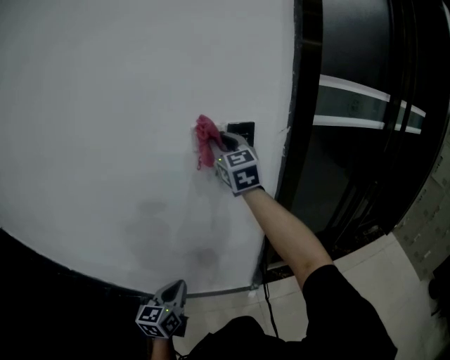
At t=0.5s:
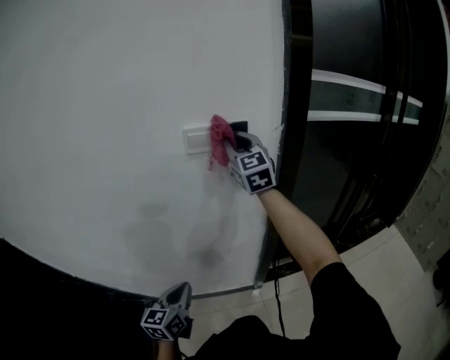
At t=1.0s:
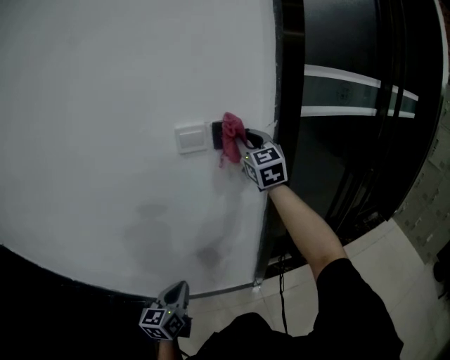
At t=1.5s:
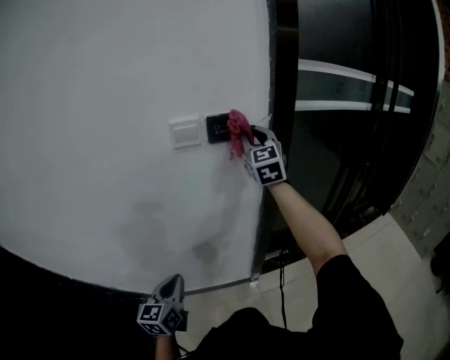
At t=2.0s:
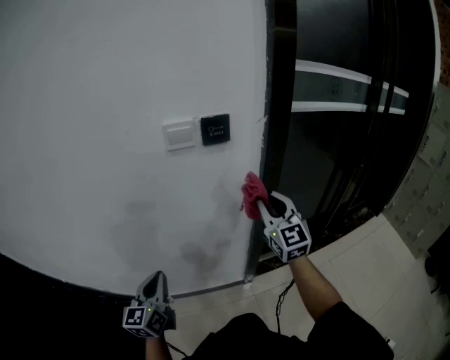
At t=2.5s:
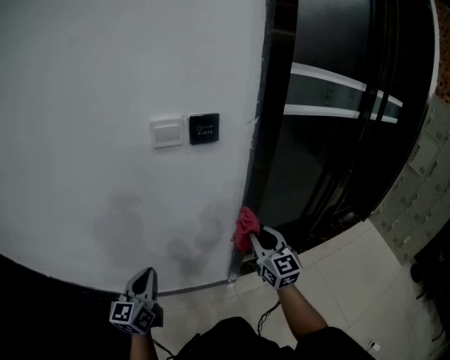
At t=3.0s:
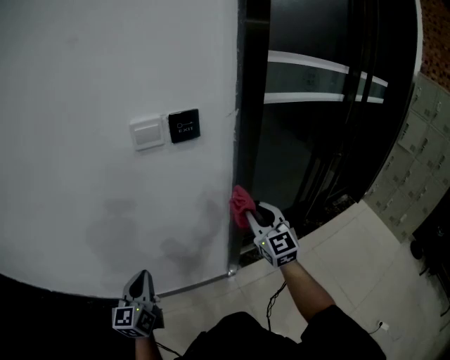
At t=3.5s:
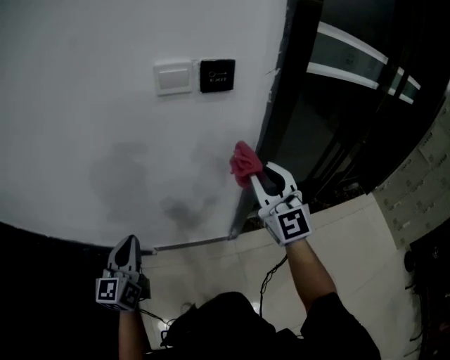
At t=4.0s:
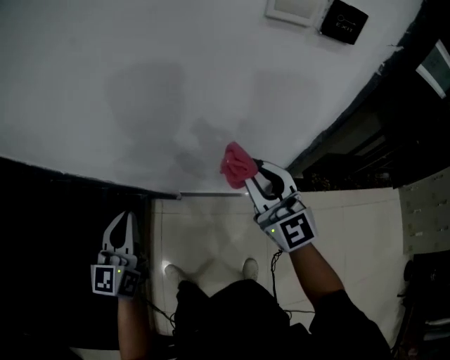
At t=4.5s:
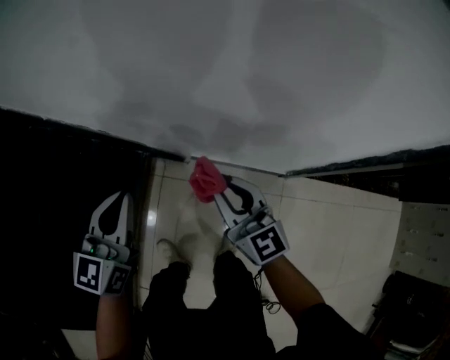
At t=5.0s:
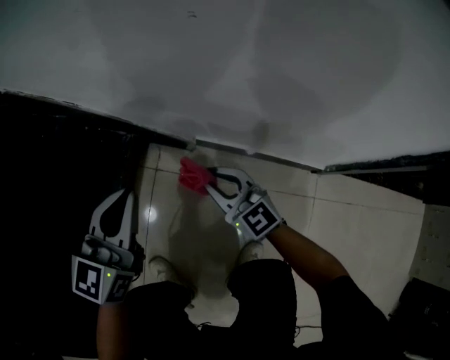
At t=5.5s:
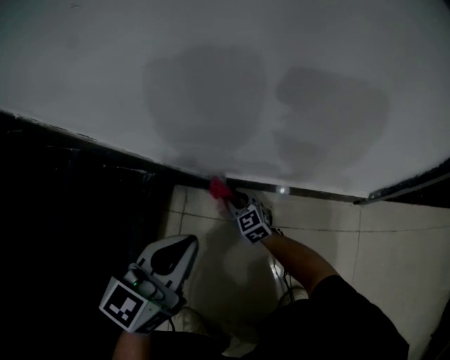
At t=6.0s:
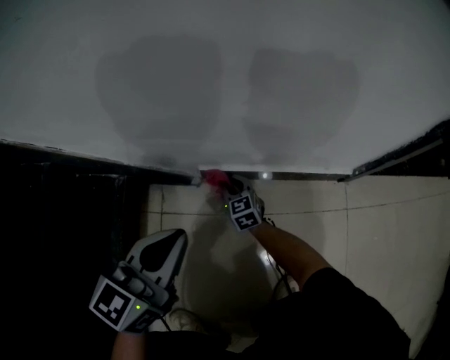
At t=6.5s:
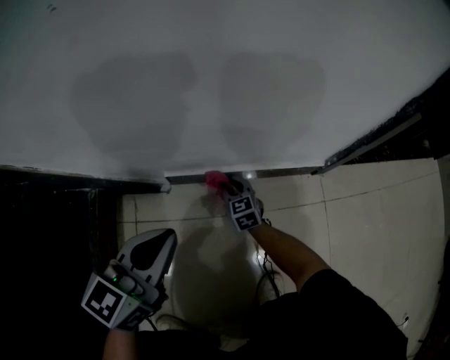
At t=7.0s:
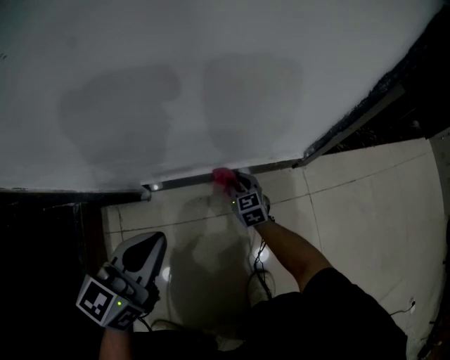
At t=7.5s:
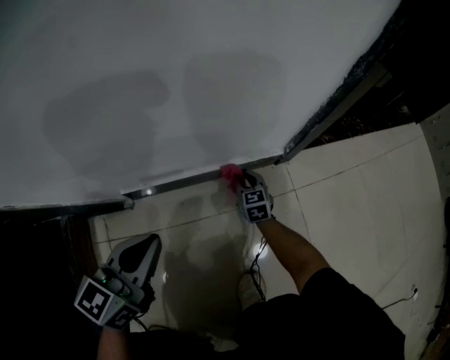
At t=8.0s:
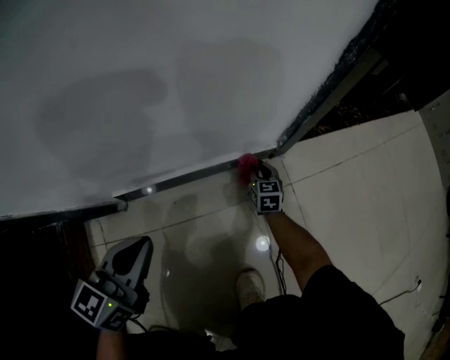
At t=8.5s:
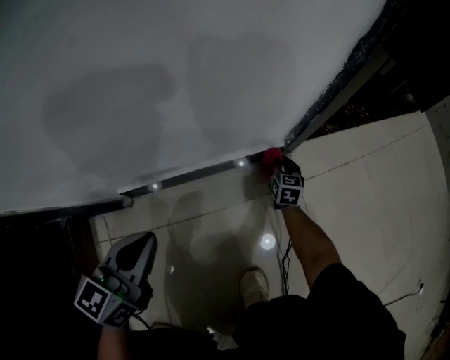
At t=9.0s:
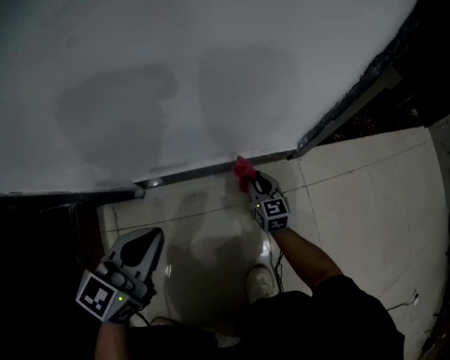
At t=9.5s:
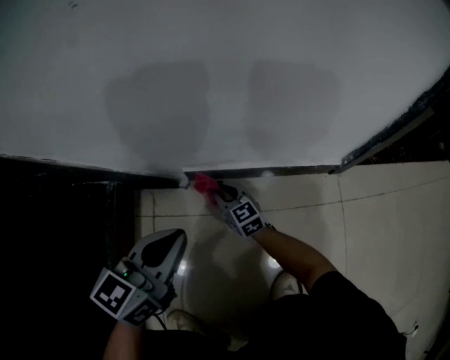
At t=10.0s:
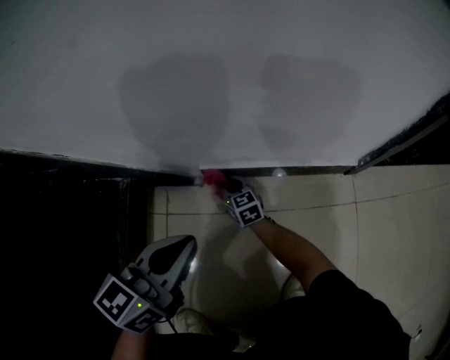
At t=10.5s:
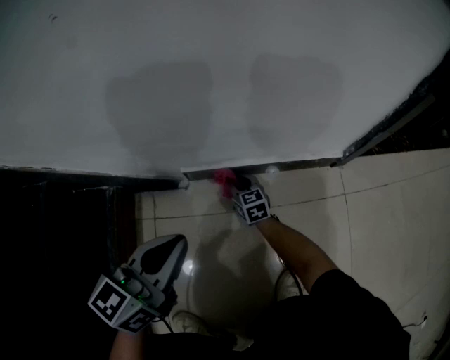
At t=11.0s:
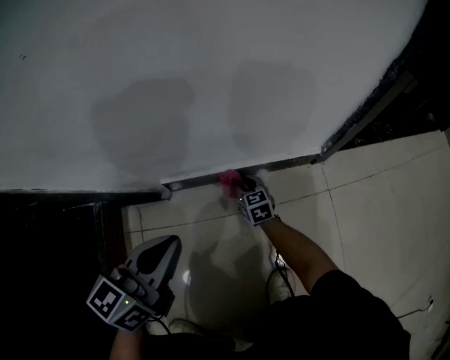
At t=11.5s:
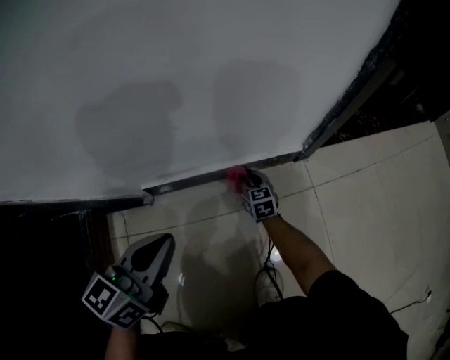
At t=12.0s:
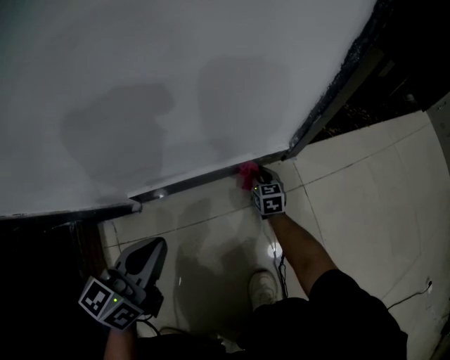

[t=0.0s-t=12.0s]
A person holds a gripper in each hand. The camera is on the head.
t=0.0s to t=2.0s: The right gripper heads to the right, downward and backward, covering approximately 25 cm. Meanwhile the left gripper moves approximately 5 cm.
t=2.0s to t=4.0s: The left gripper shifts approximately 15 cm to the left. The right gripper heads to the left and downward, covering roughly 25 cm, and rotates some 30 degrees.
t=4.0s to t=6.0s: The right gripper is displaced downward by some 90 cm, and angles its fingers downward, by roughly 30 degrees. Meanwhile the left gripper is displaced downward by about 60 cm, and rotates about 30 degrees.
t=6.0s to t=8.0s: The right gripper changes place by about 40 cm, and turns by about 40 degrees. Meanwhile the left gripper shifts by about 15 cm.
t=8.0s to t=10.0s: The left gripper changes place by some 15 cm; the right gripper changes place by some 40 cm, and changes its angle by some 40 degrees.
t=10.0s to t=12.0s: The left gripper shifts by roughly 10 cm; the right gripper shifts by approximately 40 cm, and changes its angle by about 40 degrees.

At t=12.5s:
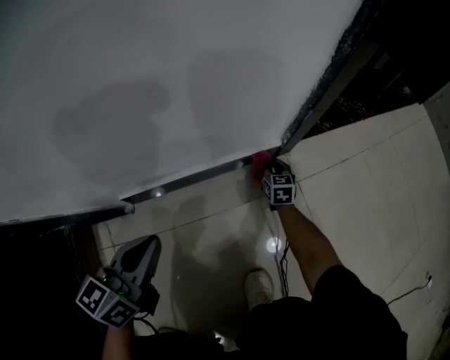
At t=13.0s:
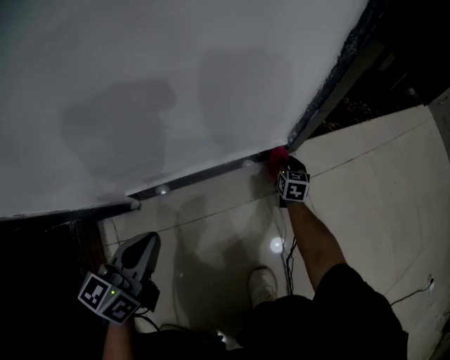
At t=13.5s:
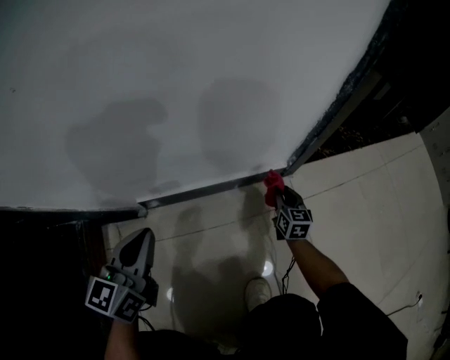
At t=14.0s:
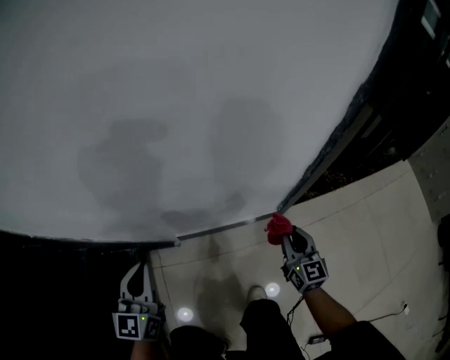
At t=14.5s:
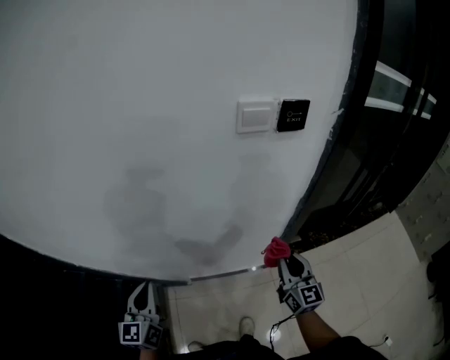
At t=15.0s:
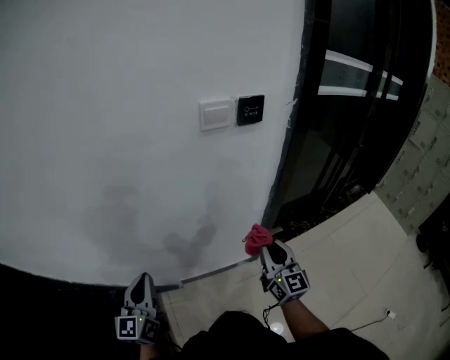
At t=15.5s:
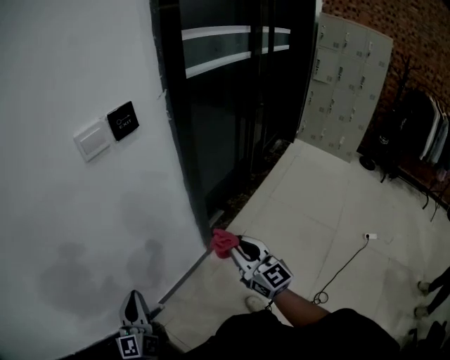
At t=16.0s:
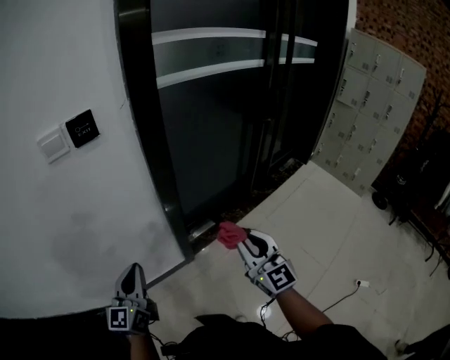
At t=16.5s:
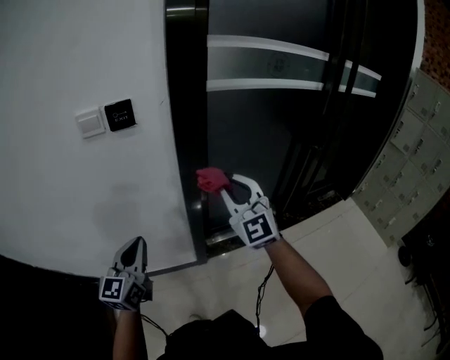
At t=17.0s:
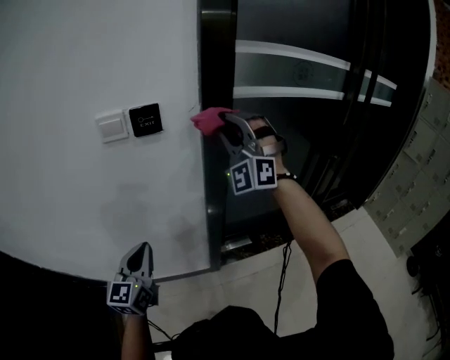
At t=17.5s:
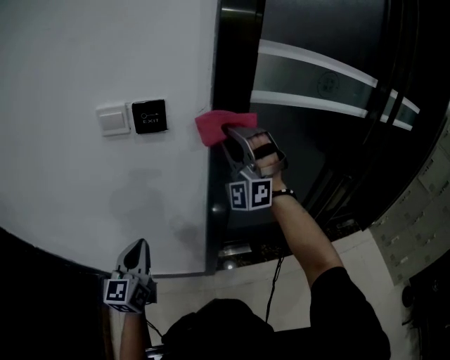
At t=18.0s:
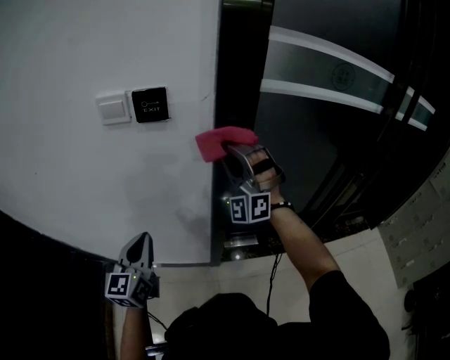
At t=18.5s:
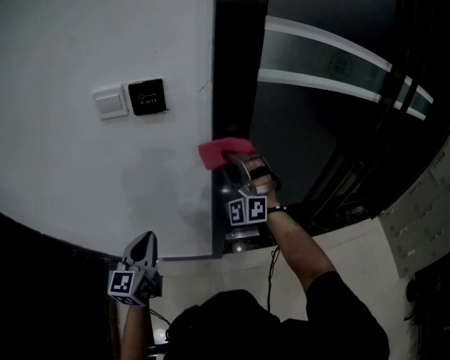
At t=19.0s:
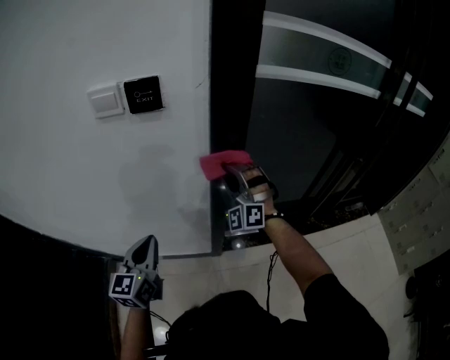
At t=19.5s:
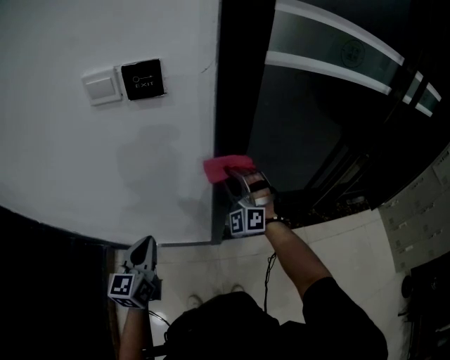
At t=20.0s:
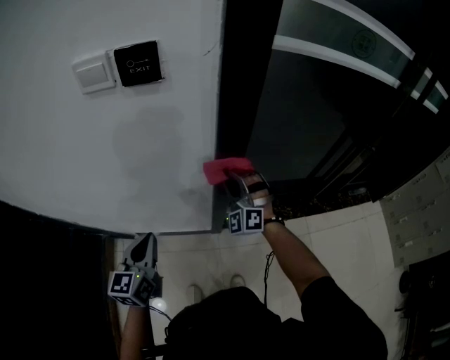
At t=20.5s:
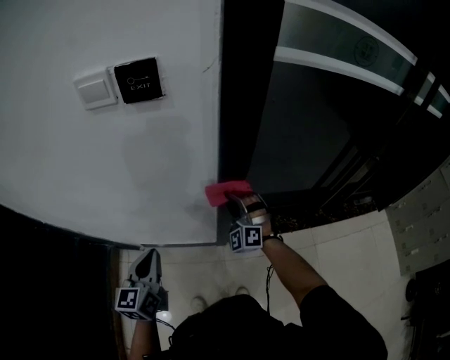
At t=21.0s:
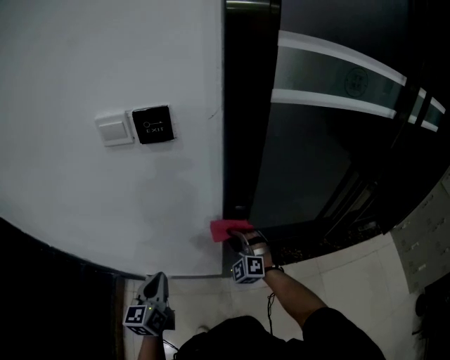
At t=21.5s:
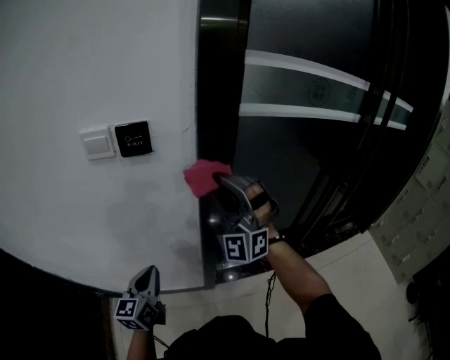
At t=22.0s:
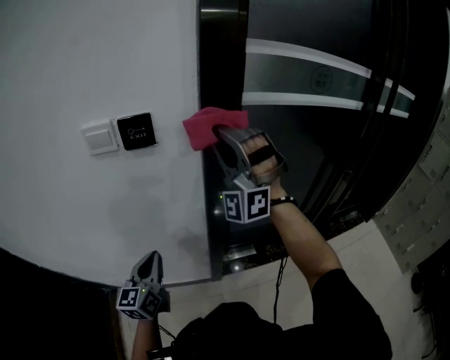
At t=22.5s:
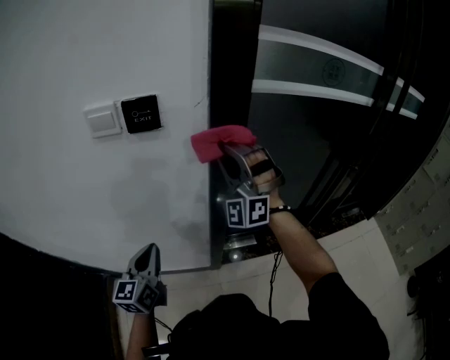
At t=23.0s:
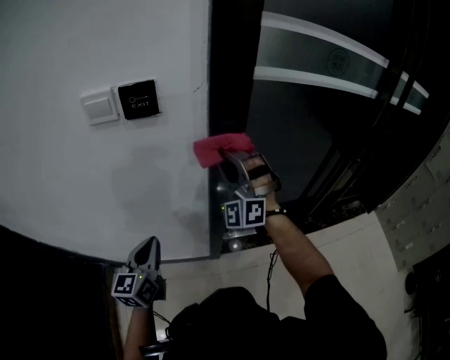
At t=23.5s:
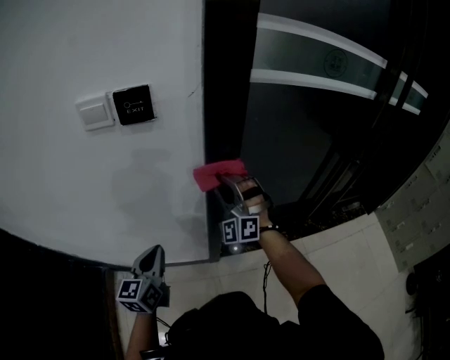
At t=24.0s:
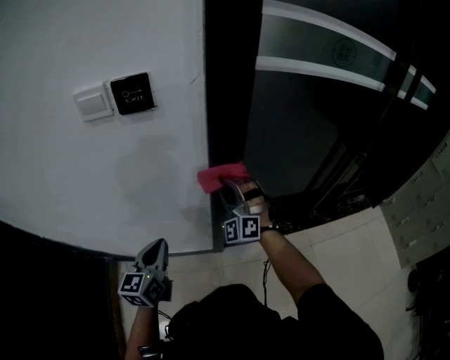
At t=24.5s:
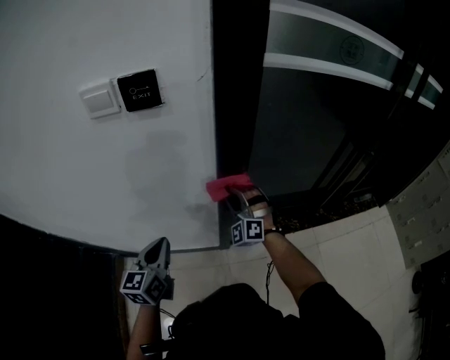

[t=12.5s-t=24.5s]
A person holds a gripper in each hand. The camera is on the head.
t=12.5s to t=14.5s: Both grippers travel together upward, roughly 80 cm. The left gripper changes its angle by approximately 40 degrees. The right gripper tips its fingers upward by roughly 40 degrees.
t=14.5s to t=16.5s: The left gripper is displaced to the right by about 40 cm. Meanwhile the right gripper moves to the right and upward, approximately 35 cm, and swivels some 40 degrees.
t=16.5s to t=18.5s: The right gripper moves forward, some 20 cm, goes upward and returns, roughly 15 cm each way, and rotates around the line of its fingers by about 40 degrees, counterclockwise from behind, while the left gripper shifts some 5 cm forward.
t=18.5s to t=20.5s: The left gripper moves downward, approximately 10 cm; the right gripper goes some 20 cm downward, and changes its angle by some 20 degrees.
t=20.5s to t=22.5s: The left gripper goes some 5 cm upward; the right gripper goes roughly 30 cm upward, and points its fingers about 30 degrees further upward.
t=22.5s to t=24.5s: The right gripper heads downward, covering approximately 25 cm, and rotates some 30 degrees.

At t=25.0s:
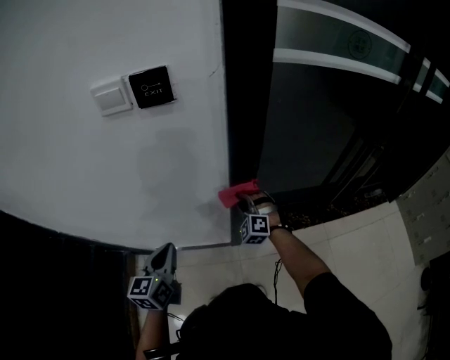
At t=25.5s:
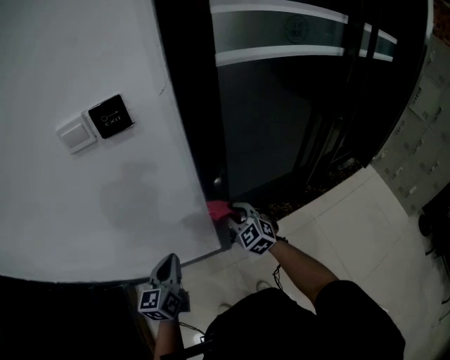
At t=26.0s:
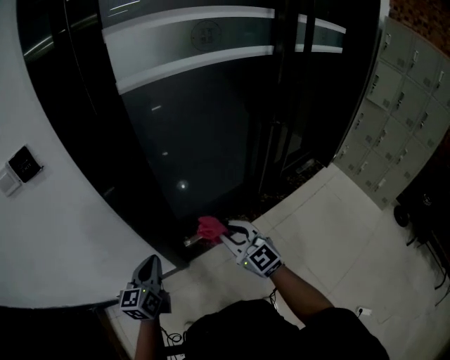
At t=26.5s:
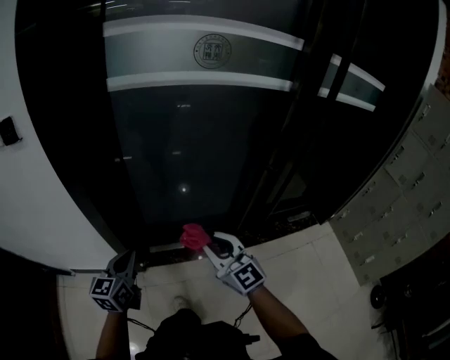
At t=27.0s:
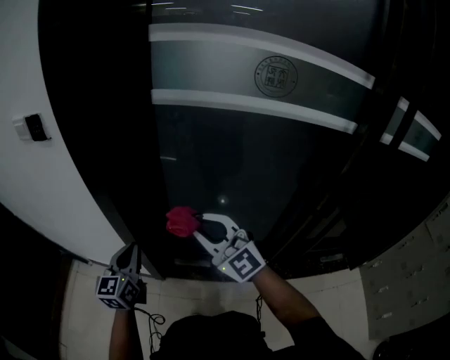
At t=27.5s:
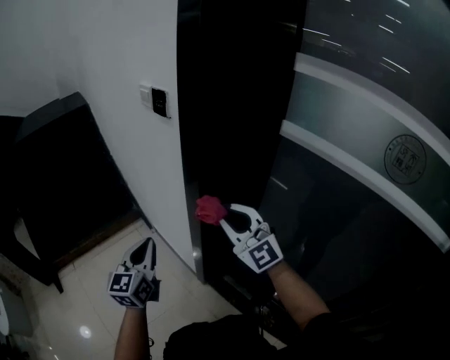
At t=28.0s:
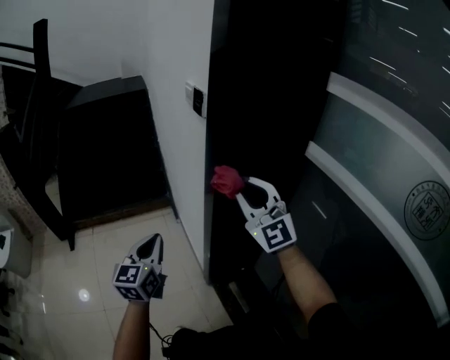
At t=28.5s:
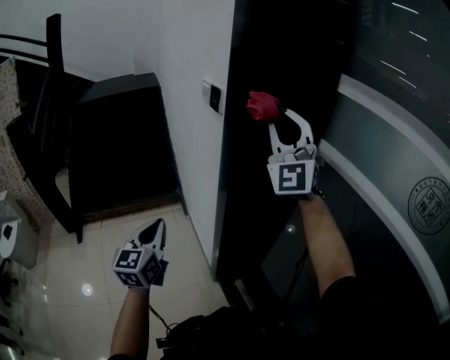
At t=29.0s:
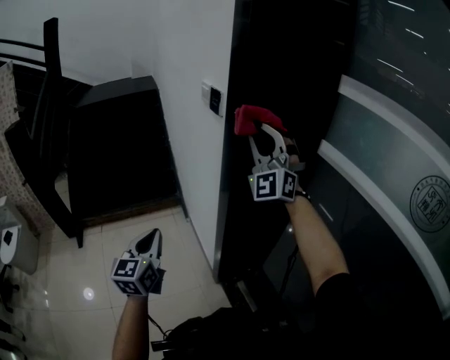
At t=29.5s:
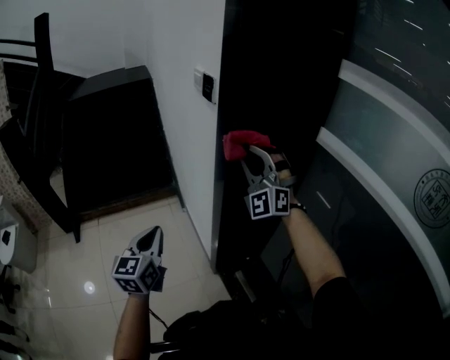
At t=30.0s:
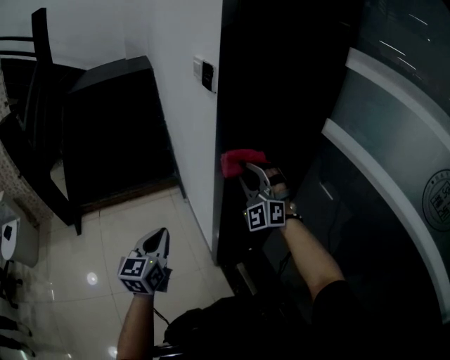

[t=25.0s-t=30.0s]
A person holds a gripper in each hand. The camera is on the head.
t=25.0s to t=27.5s: The left gripper ends up some 30 cm from where it was, and changes its angle by about 50 degrees. Meanwhile the right gripper is displaced upward by some 25 cm, and points its fingers about 30 degrees further upward.
t=27.5s to t=30.0s: The left gripper travels backward by about 5 cm; the right gripper heads forward, covering approximately 10 cm, moves some 25 cm upward and comes back, and changes its angle by about 40 degrees.
